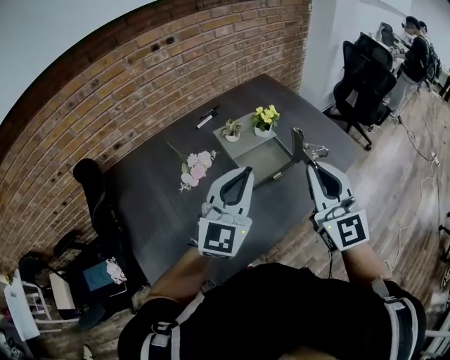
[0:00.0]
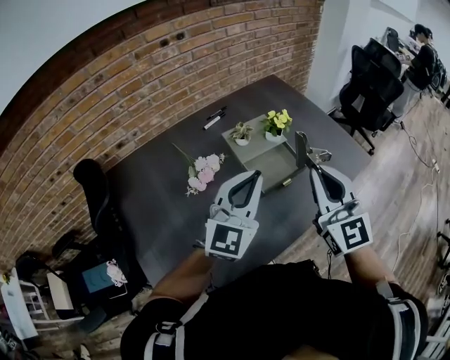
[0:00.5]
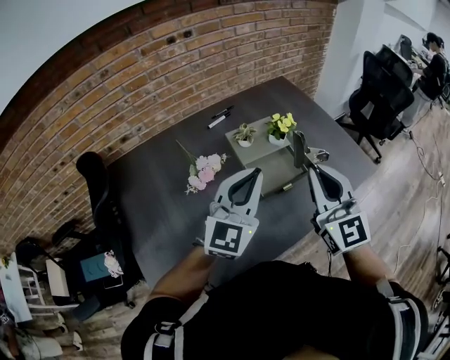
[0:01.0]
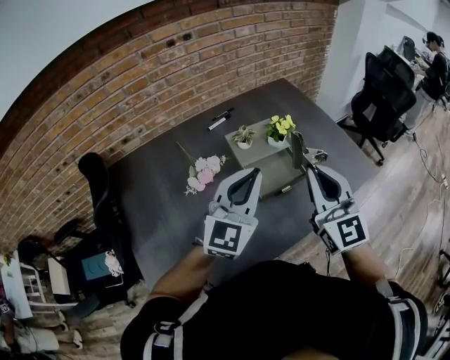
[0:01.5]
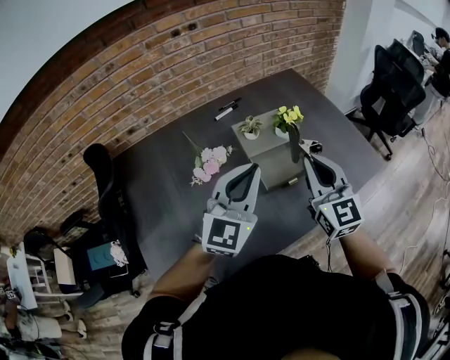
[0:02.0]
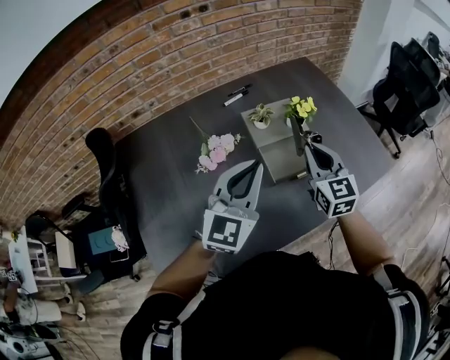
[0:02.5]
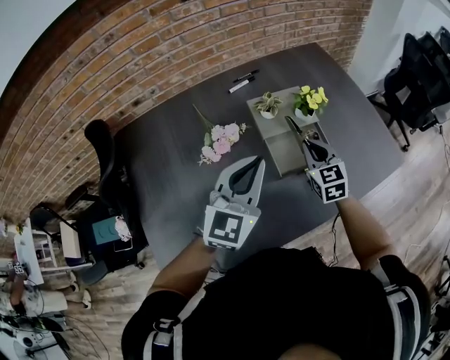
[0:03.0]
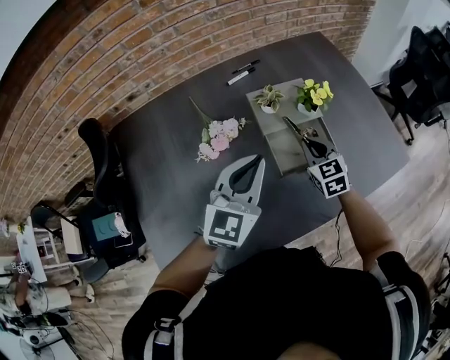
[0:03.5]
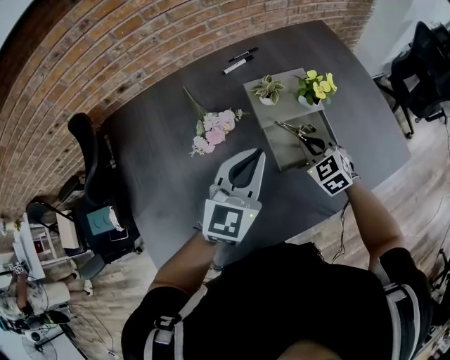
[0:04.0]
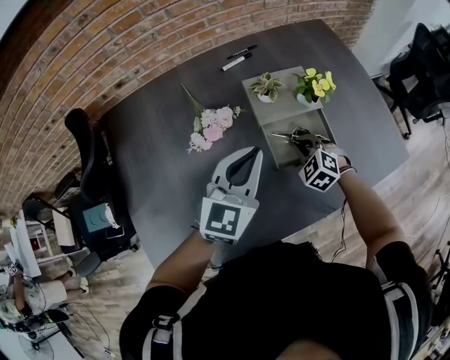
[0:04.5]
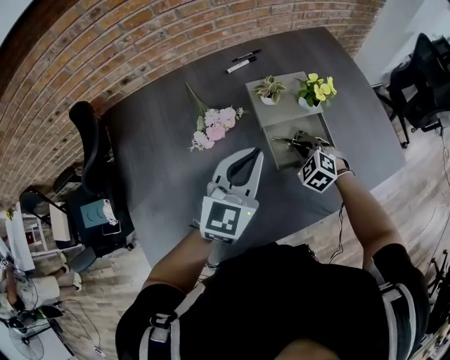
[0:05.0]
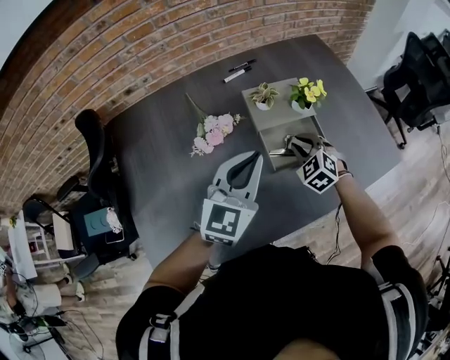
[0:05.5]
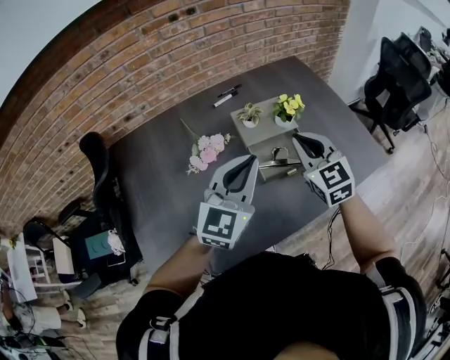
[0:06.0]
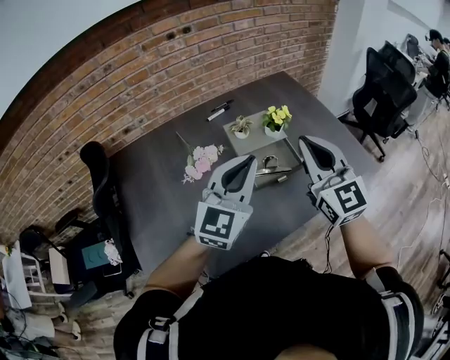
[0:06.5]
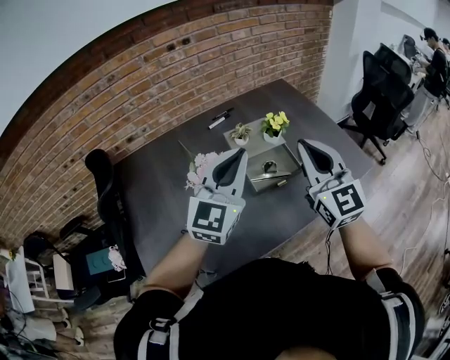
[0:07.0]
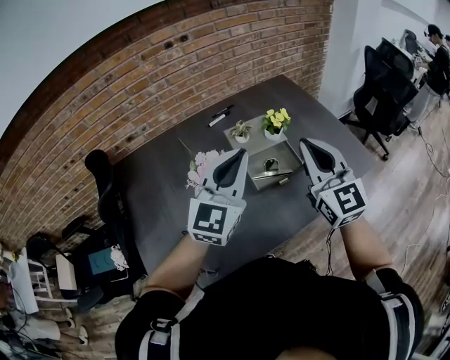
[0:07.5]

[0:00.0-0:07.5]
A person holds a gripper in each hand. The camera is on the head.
0.0 to 2.0 s: The left gripper moves some 5 cm, while the right gripper shifts approximately 10 cm forward and downward.
2.0 to 4.0 s: The left gripper heads downward and forward, covering some 15 cm, while the right gripper shifts some 25 cm downward and forward, and tips its fingers downward by roughly 40 degrees.
5.5 to 7.5 s: The right gripper goes approximately 30 cm upward and backward, and angles its fingers upward, by approximately 50 degrees, while the left gripper shifts about 10 cm upward.

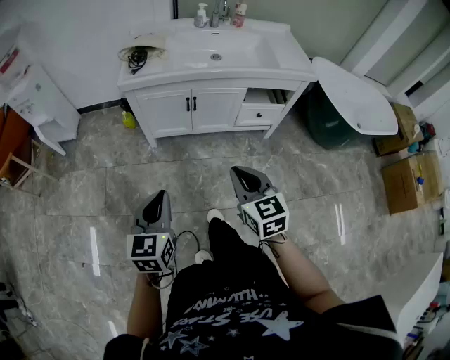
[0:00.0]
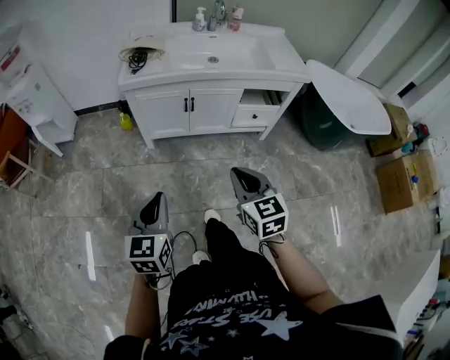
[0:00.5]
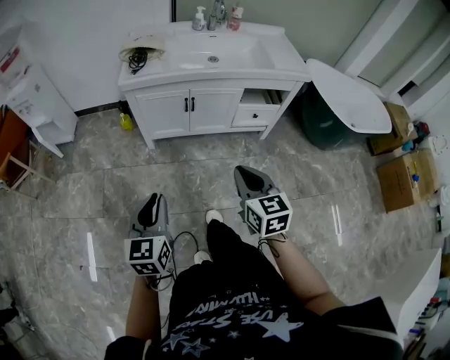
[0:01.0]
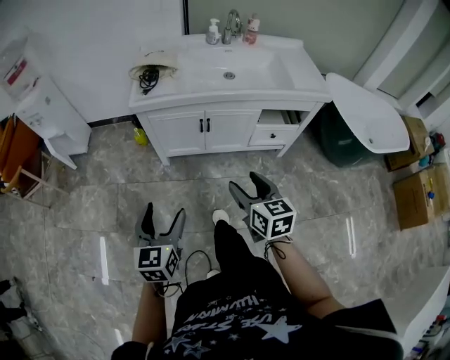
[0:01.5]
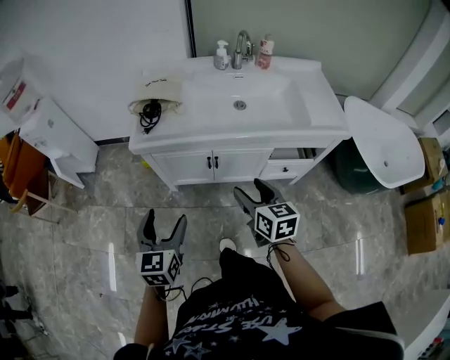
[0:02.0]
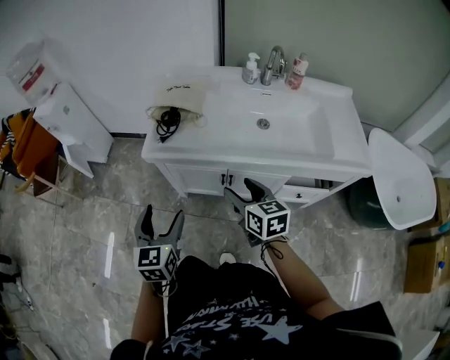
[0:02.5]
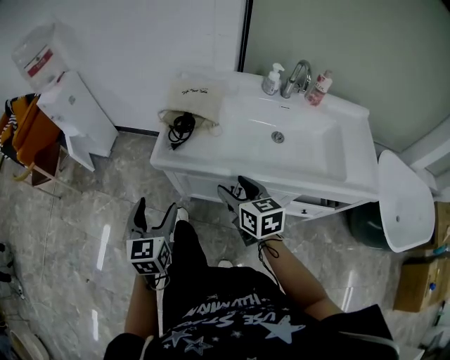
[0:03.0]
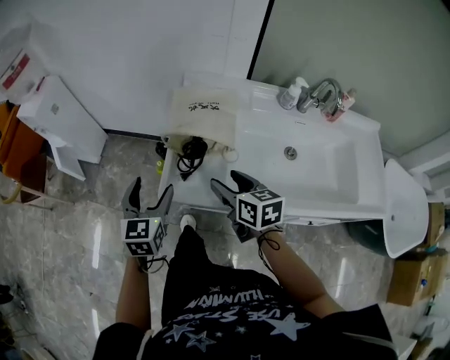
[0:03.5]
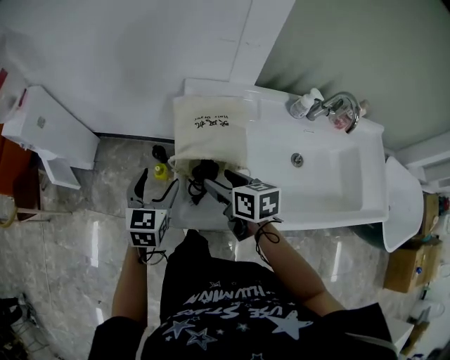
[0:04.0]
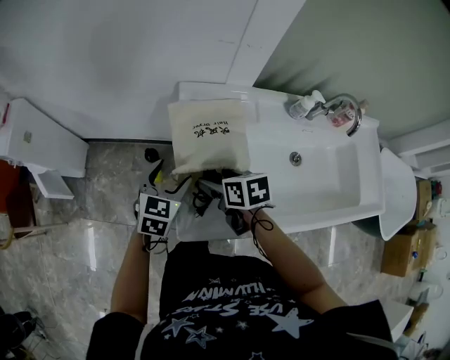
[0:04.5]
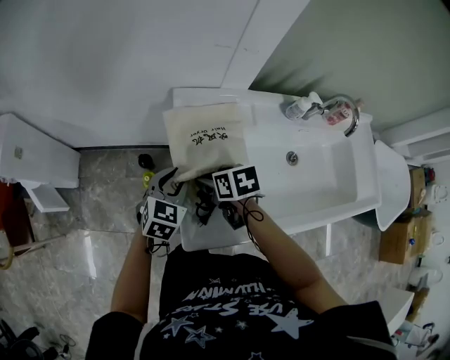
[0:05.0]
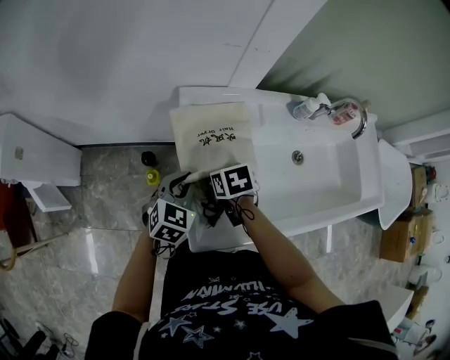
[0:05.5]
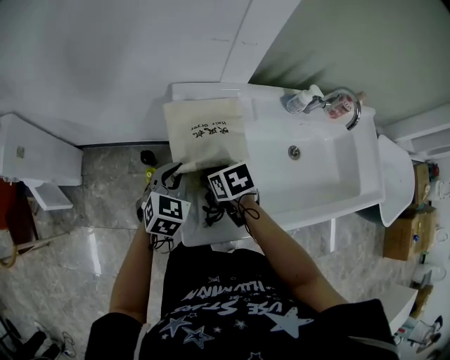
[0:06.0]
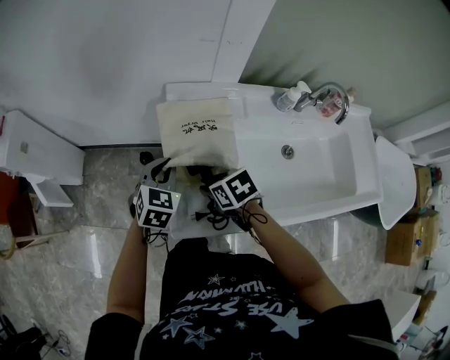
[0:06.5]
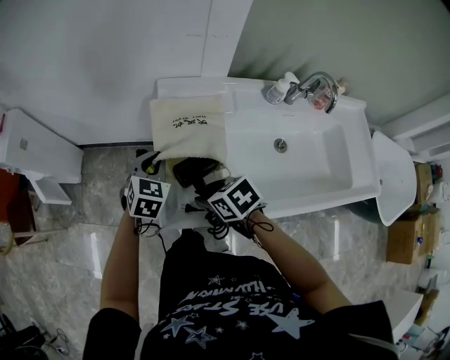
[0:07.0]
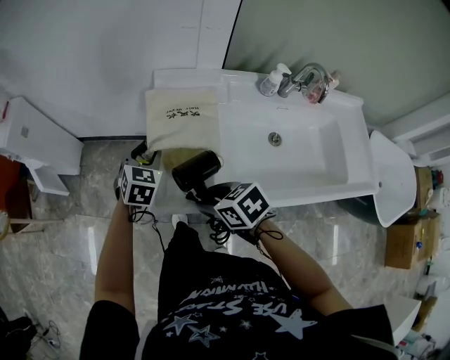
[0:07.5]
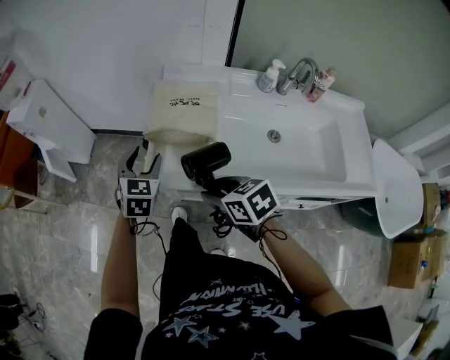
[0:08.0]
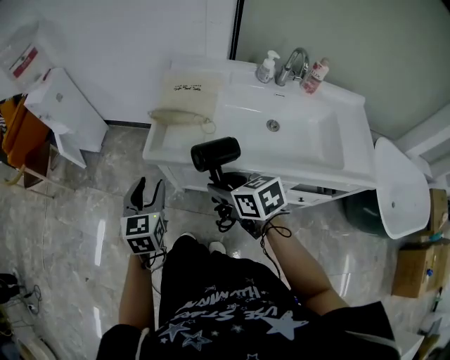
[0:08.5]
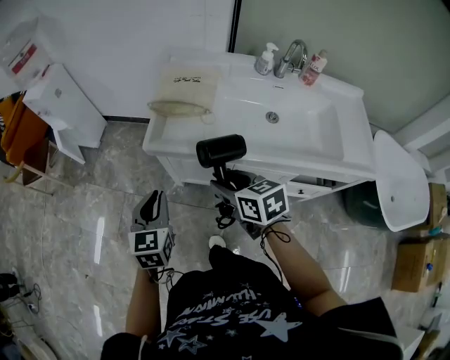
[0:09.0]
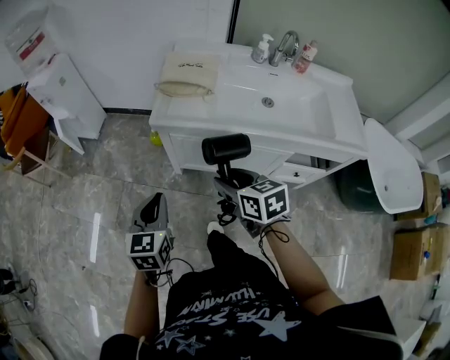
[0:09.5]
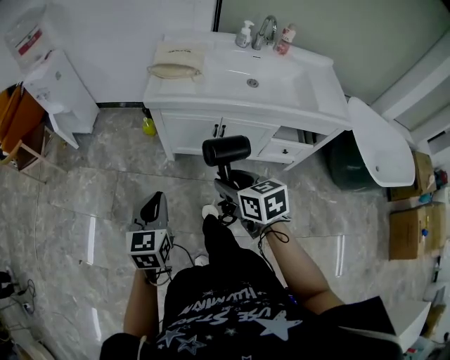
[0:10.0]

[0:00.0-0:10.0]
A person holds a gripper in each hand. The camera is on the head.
0.0 to 2.0 s: Both grippers travel together forward, some 25 cm. The left gripper opens. The right gripper opens.
2.0 to 4.0 s: The two grippers travel together, forward, roughly 50 cm. The right gripper turns by about 20 degrees.
4.0 to 6.0 s: The right gripper goes about 10 cm downward and forward, and swivels about 30 degrees; the left gripper goes roughly 10 cm forward and to the right, swivels roughly 30 degrees, and closes.
6.0 to 8.0 s: The left gripper heads backward, covering approximately 15 cm, changes its angle by some 30 degrees, and opens up. The right gripper shifts approximately 25 cm backward, and turns by roughly 30 degrees.
8.0 to 10.0 s: The two grippers go approximately 40 cm backward. The left gripper rotates roughly 20 degrees, and closes up.

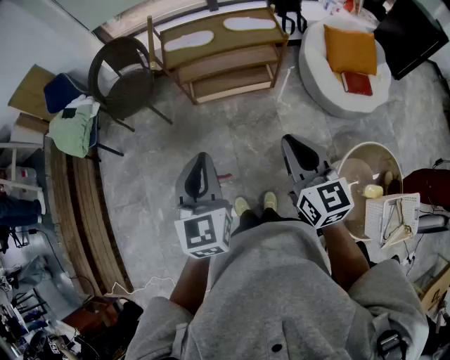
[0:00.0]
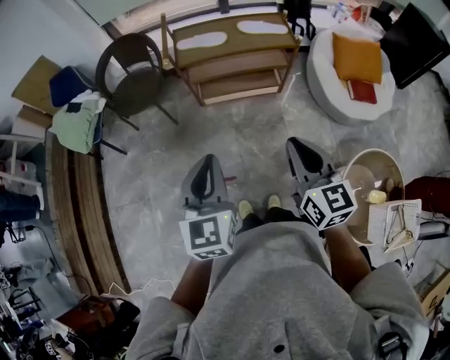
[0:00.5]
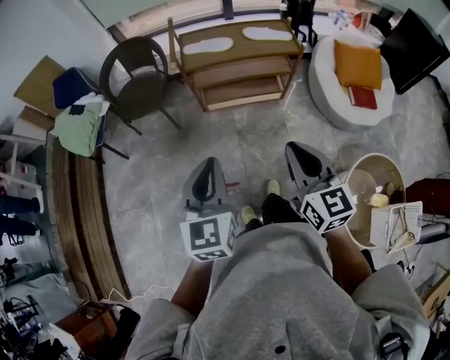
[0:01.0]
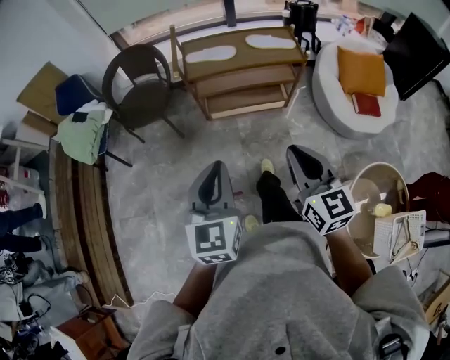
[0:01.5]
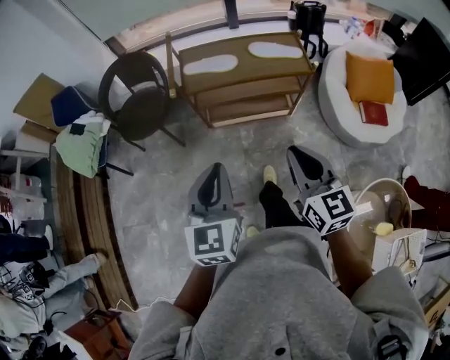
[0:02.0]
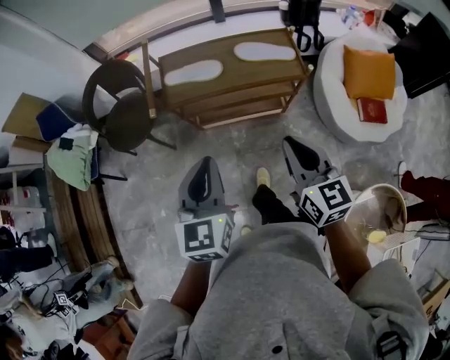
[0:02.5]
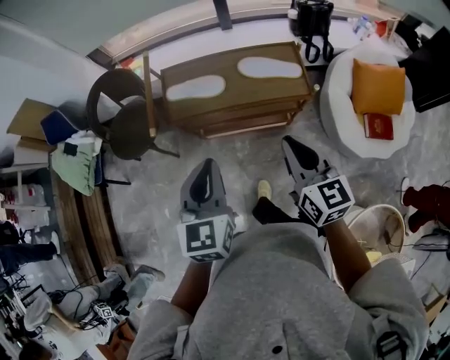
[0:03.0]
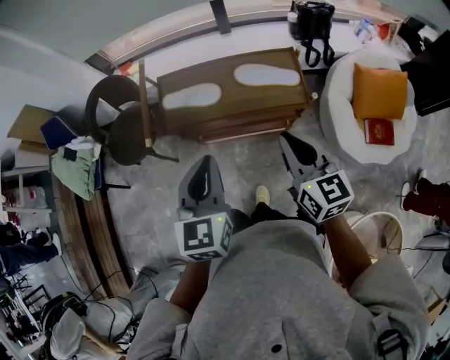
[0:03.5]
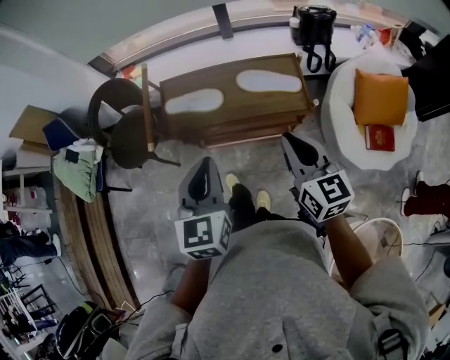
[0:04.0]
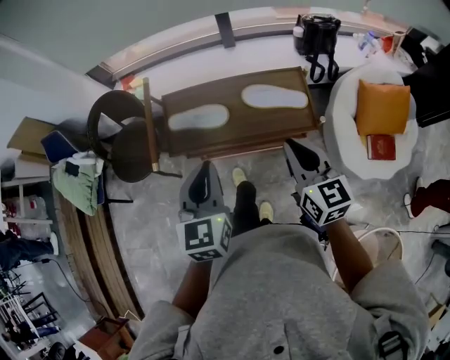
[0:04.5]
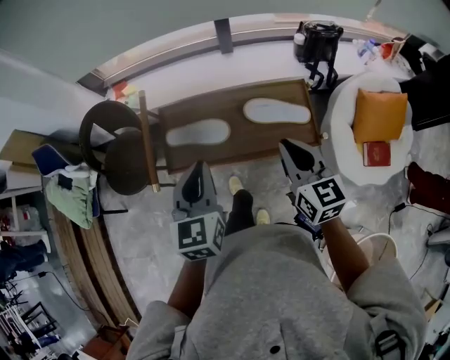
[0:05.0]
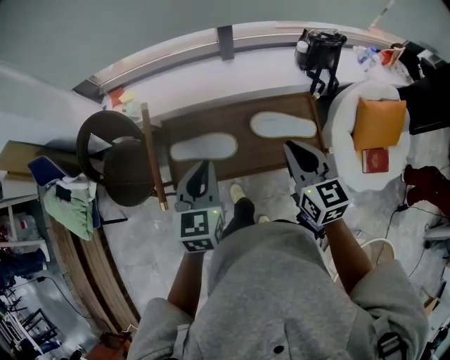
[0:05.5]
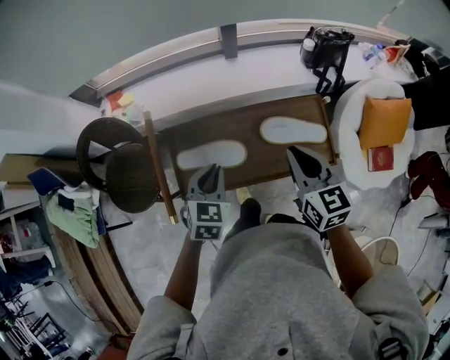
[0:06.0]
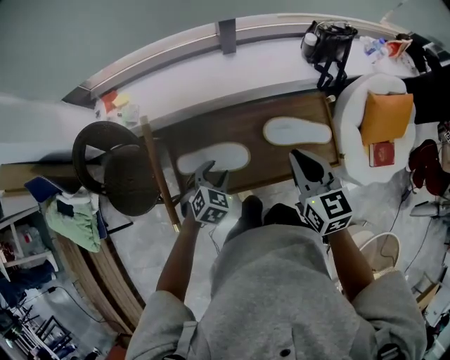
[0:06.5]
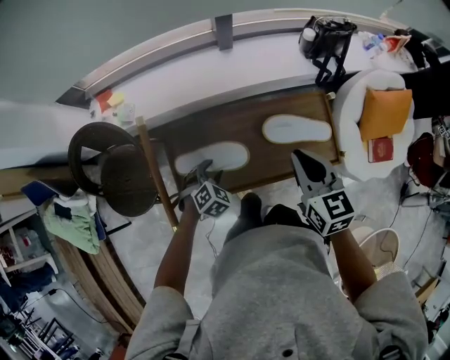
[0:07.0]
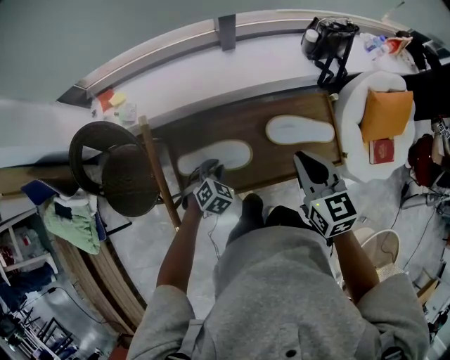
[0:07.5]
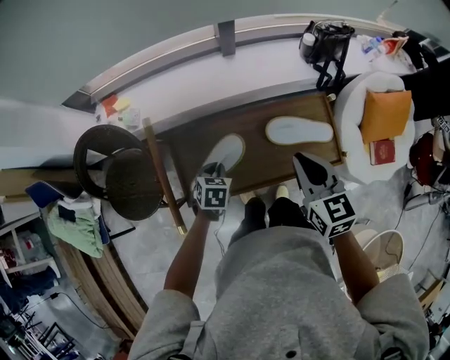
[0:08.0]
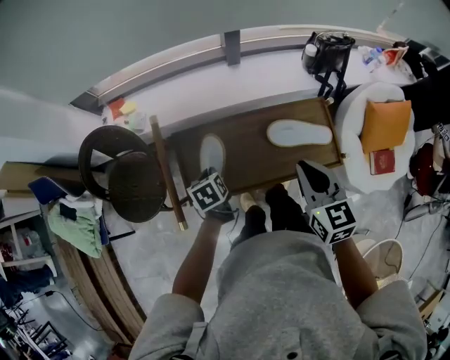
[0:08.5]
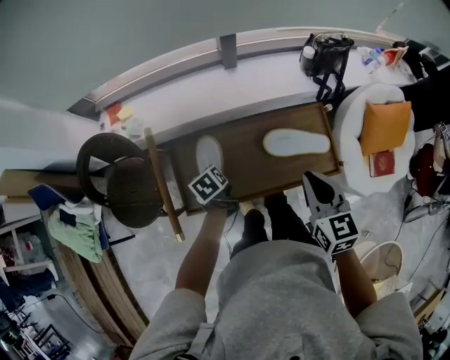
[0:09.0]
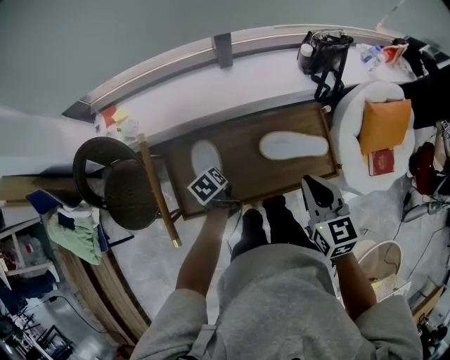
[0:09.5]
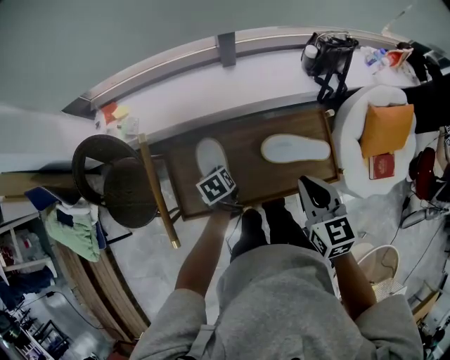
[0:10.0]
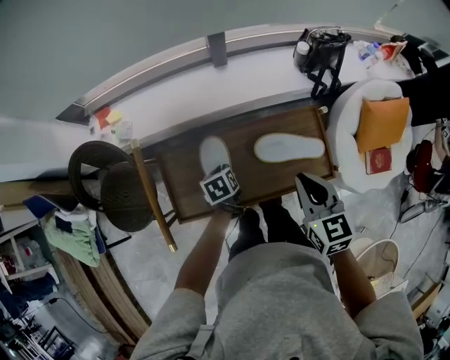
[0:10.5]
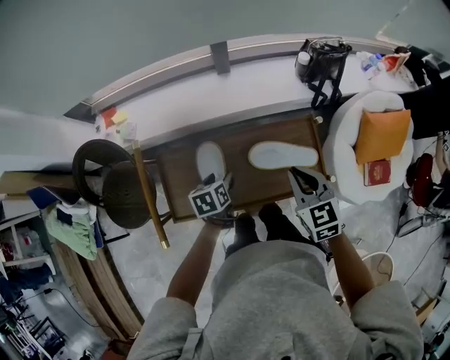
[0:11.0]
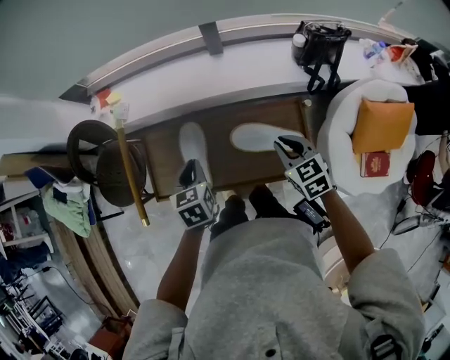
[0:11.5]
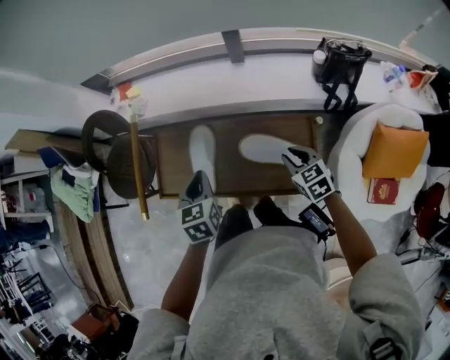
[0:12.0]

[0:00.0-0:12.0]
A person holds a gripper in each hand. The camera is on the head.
0.0 to 2.0 s: Both grippers move forward, approximately 15 cm.
2.0 to 4.0 s: The grippers both shift forward and to the right by approximately 30 cm.
4.0 to 6.0 s: The right gripper travels forward by about 25 cm, while the left gripper is displaced forward and downward by roughly 30 cm, and rotates approximately 30 degrees.
6.0 to 8.0 s: The left gripper moves downward, about 15 cm, rotates some 20 degrees, and opens and closes again.
8.0 to 10.0 s: The left gripper shifts by roughly 5 cm, and twists roughly 40 degrees counterclockwise, seen from behind.
10.0 to 12.0 s: The right gripper travels downward by roughly 15 cm, and turns by approximately 30 degrees; the left gripper travels upward by approximately 15 cm, turns by roughly 30 degrees, and opens and closes again.
